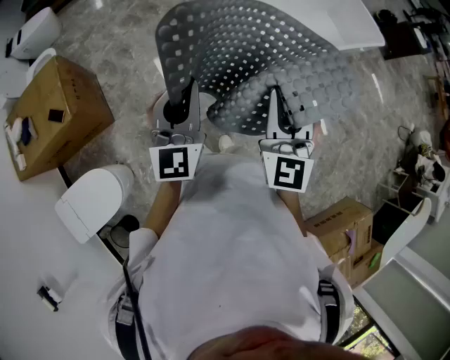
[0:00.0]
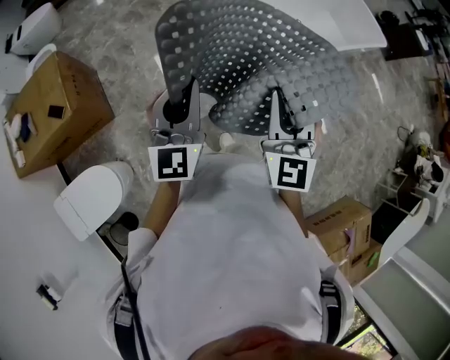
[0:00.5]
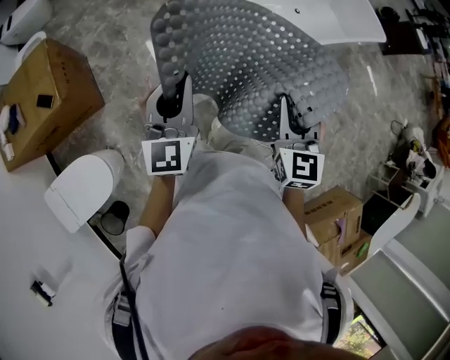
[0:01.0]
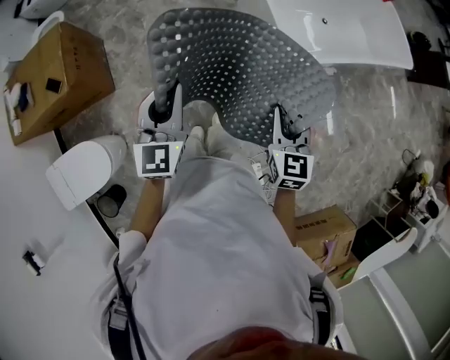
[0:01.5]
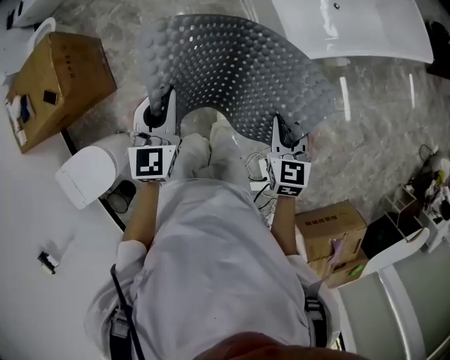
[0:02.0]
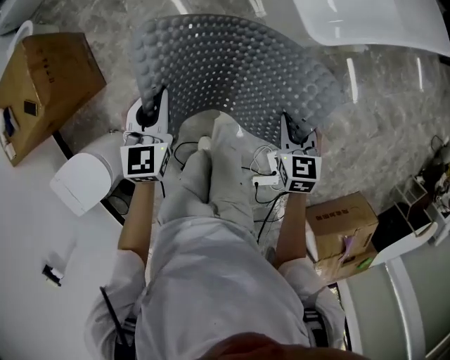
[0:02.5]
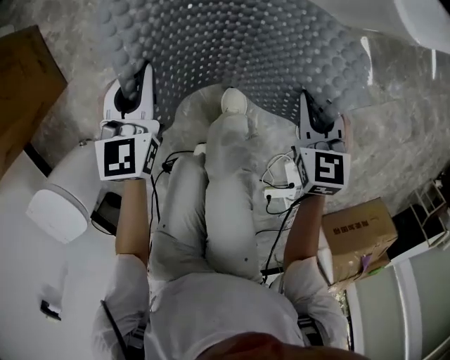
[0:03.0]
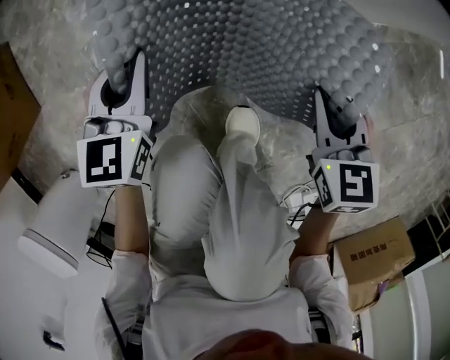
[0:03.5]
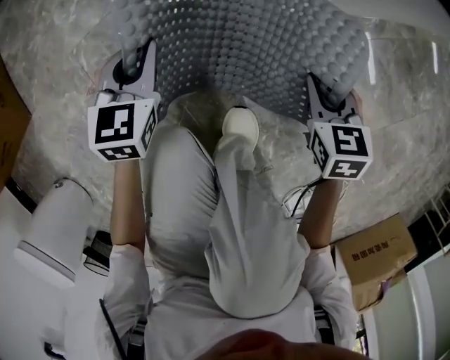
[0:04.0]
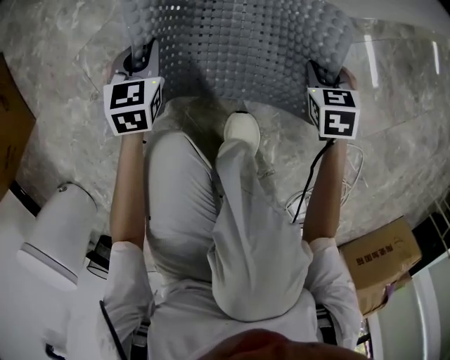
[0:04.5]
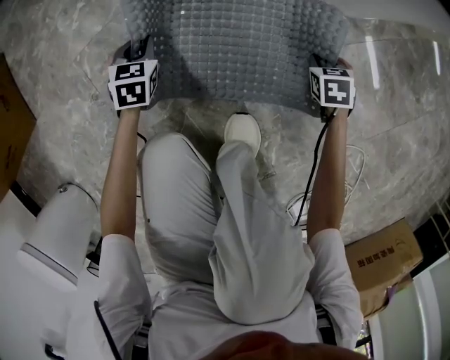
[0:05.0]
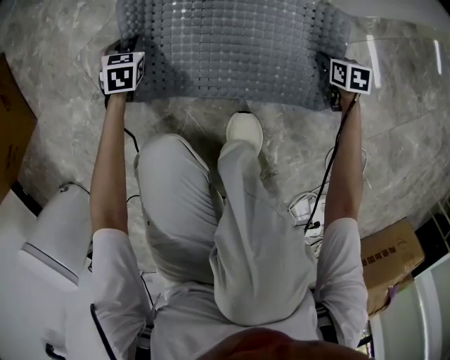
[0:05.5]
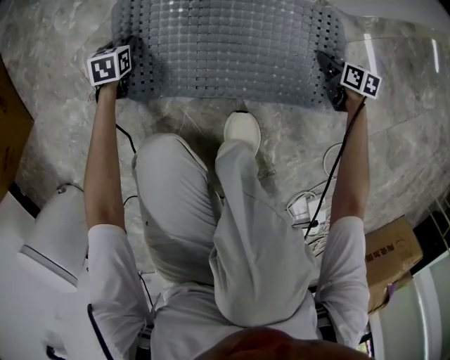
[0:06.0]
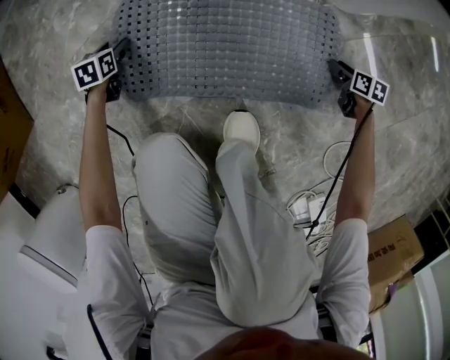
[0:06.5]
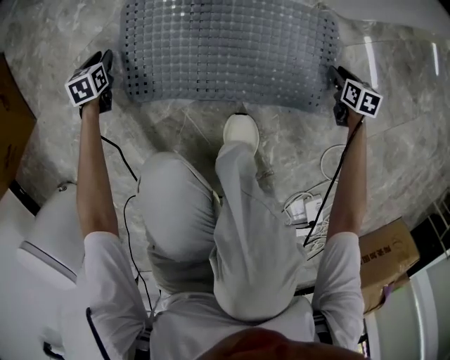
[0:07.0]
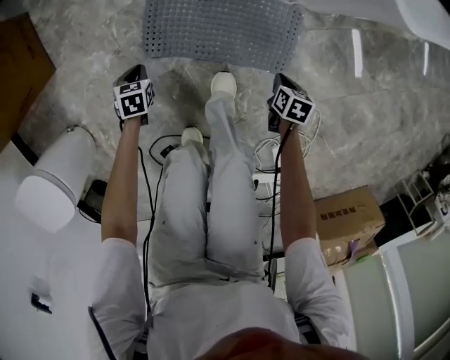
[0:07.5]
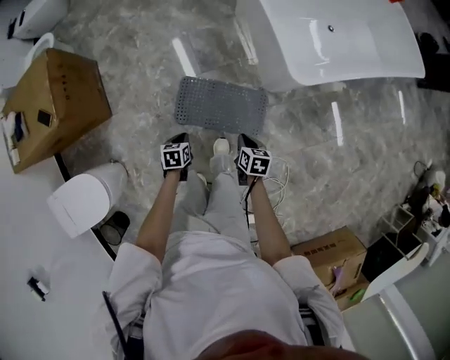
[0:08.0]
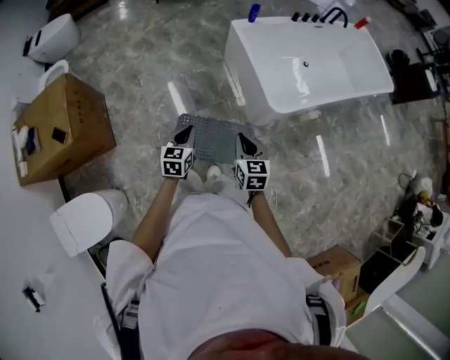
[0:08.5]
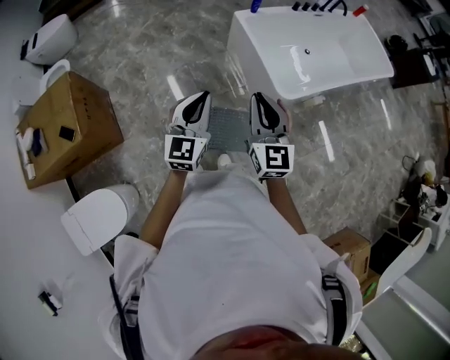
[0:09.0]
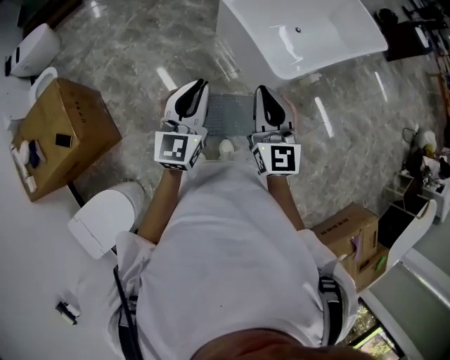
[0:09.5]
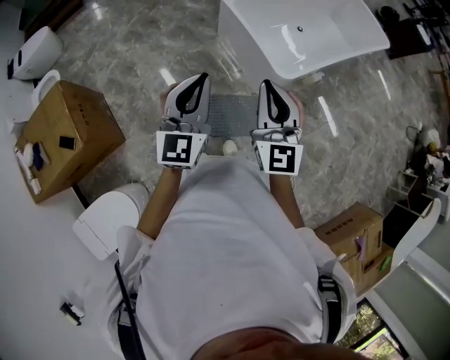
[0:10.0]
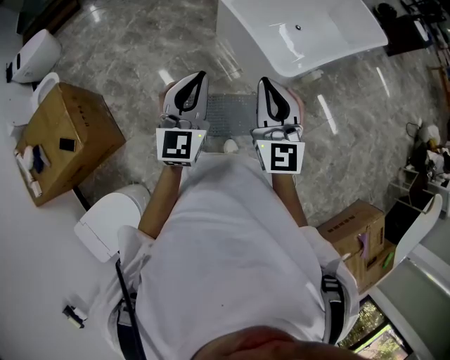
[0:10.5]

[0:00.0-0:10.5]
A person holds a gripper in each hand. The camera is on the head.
0:00.0 to 0:02.0: The right gripper shifts about 25 cm downward and to the right, and tilts its fingers some 30 degrees downward. Meanwhile the left gripper shifts roughly 15 cm downward, and rotates roughly 30 degrees.
0:02.0 to 0:04.0: Both grippers move downward, some 10 cm.
0:04.0 to 0:06.5: The left gripper heads downward and to the left, covering some 25 cm, rotates roughly 30 degrees, and opens up. Meanwhile the right gripper shifts some 30 cm downward and to the right, swivels about 30 degrees, and opens up.
0:06.5 to 0:08.5: The two grippers go roughly 90 cm upward. The right gripper turns by roughly 40 degrees, and closes up; the left gripper turns by some 30 degrees, and closes.
0:08.5 to 0:10.5: Both grippers move upward, some 25 cm. The left gripper points its fingers some 30 degrees further upward, while the right gripper tips its fingers upward by some 30 degrees.

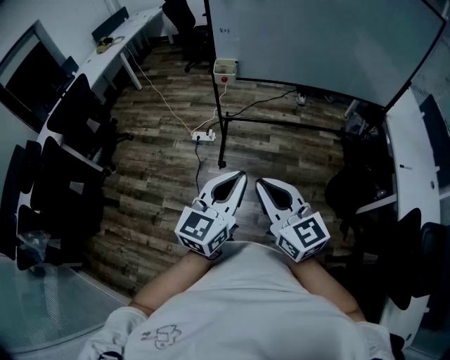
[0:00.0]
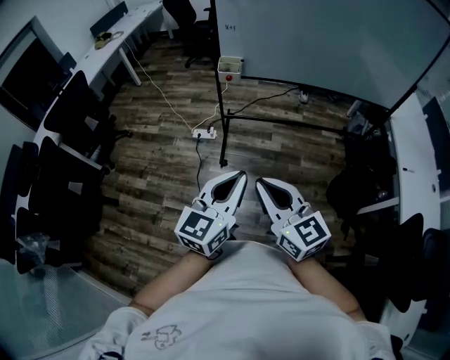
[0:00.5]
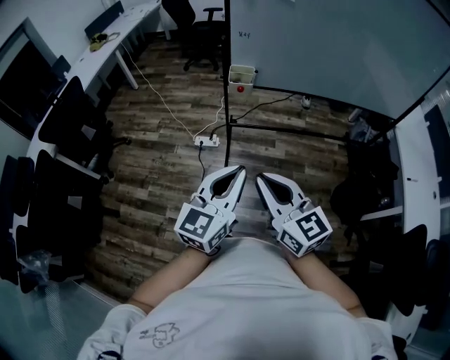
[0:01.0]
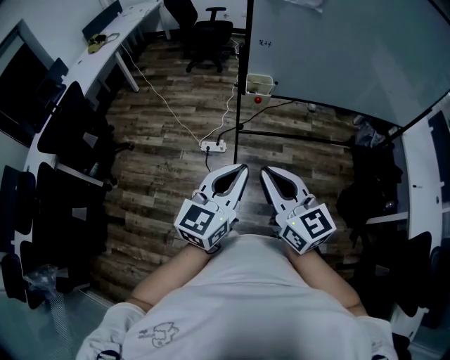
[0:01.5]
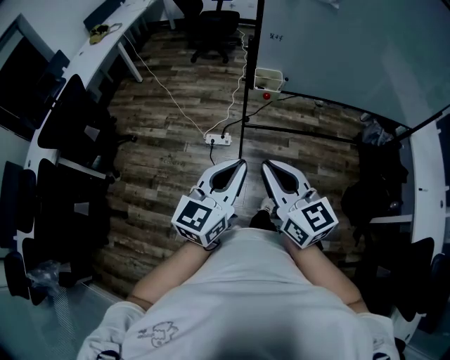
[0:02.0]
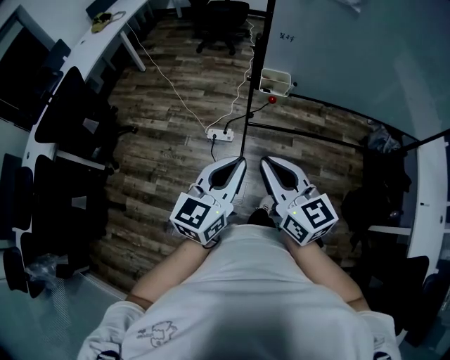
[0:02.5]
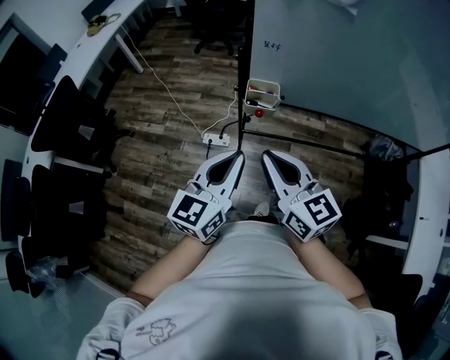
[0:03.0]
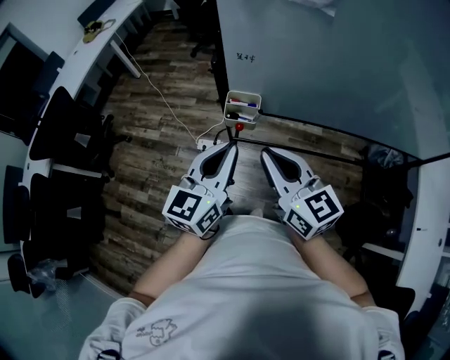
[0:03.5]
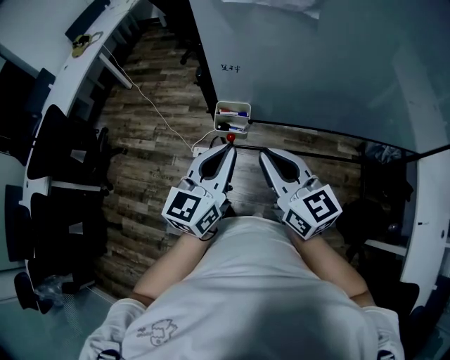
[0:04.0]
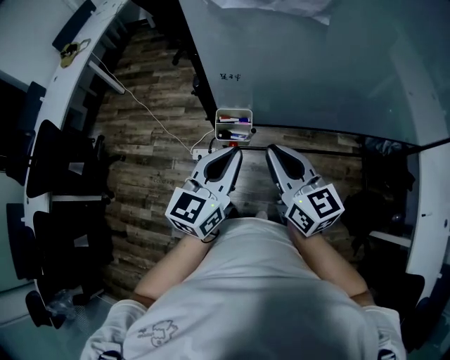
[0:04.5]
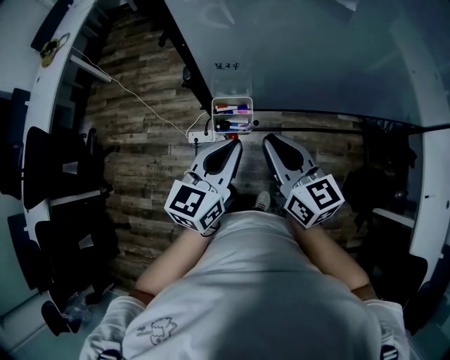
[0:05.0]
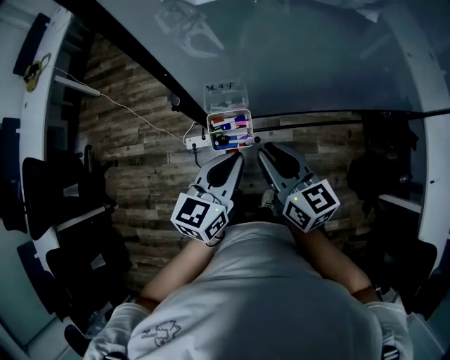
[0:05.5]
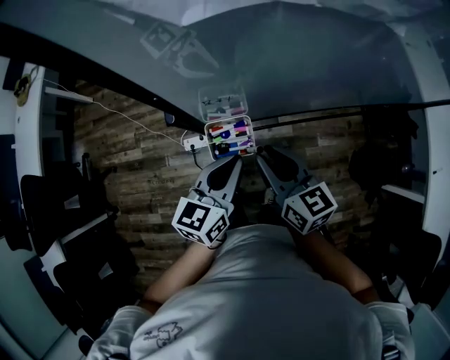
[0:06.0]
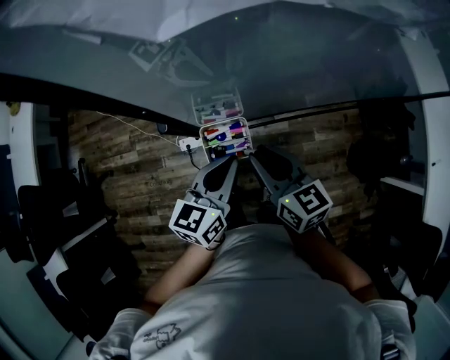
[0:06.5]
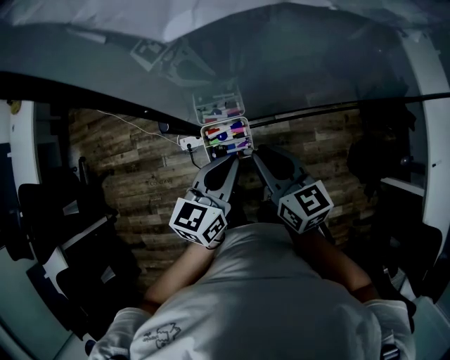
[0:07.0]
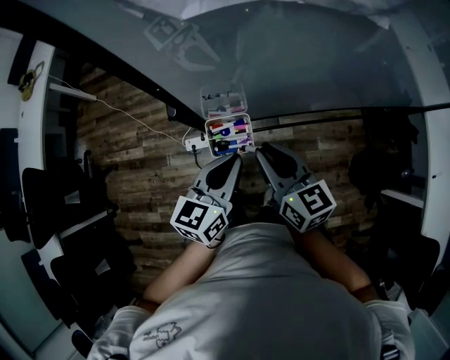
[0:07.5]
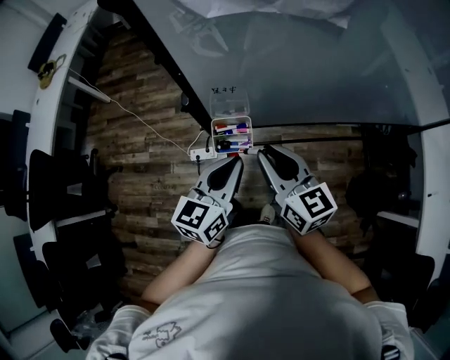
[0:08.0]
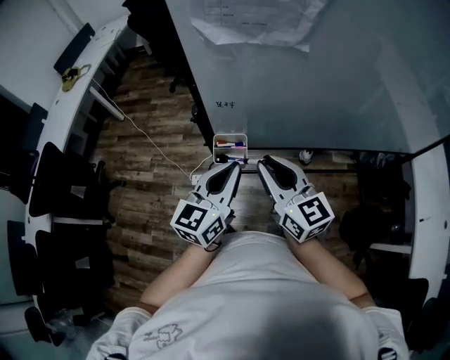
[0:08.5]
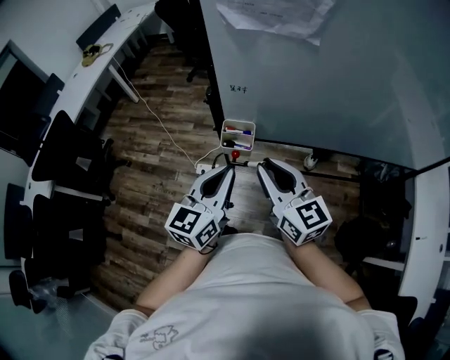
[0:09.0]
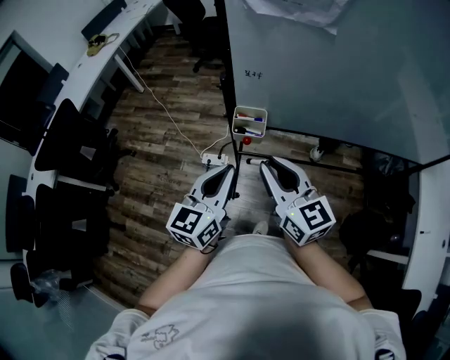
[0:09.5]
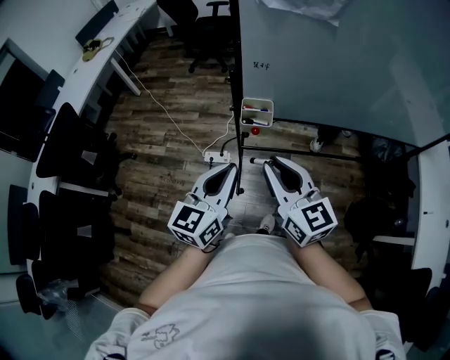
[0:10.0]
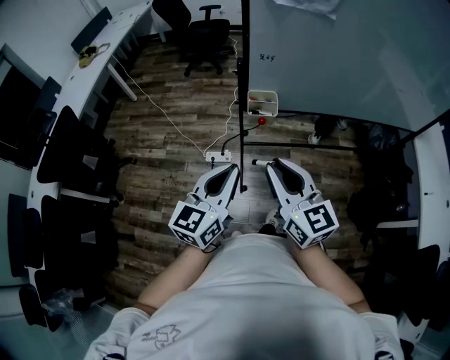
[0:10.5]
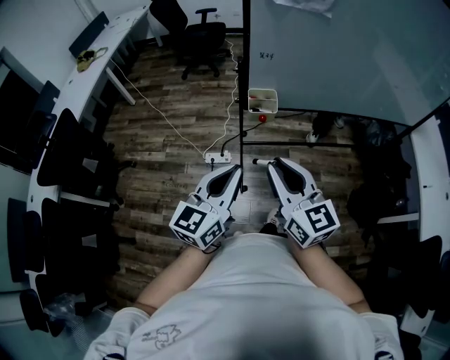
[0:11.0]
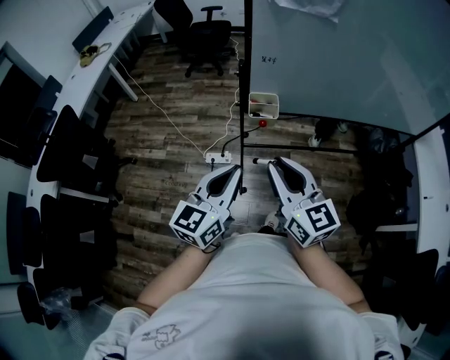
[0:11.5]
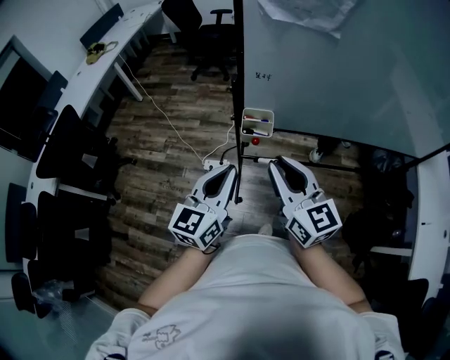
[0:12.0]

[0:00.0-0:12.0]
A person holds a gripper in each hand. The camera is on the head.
0:00.0 to 0:02.0: The grippers both shift forward and to the left by roughly 30 cm.
0:02.0 to 0:04.0: The two grippers go some 30 cm forward and to the right.
0:04.0 to 0:06.0: The two grippers go roughly 20 cm downward and forward. The left gripper rotates approximately 20 degrees, while the right gripper swivels some 30 degrees.
0:06.0 to 0:08.0: The two grippers go approximately 5 cm upward.
0:08.0 to 0:10.0: The left gripper is displaced backward and to the left by some 20 cm, while the right gripper shifts roughly 20 cm backward.
0:10.0 to 0:12.0: The left gripper goes backward and returns, some 10 cm each way; the right gripper travels backward and back again, approximately 10 cm each way.

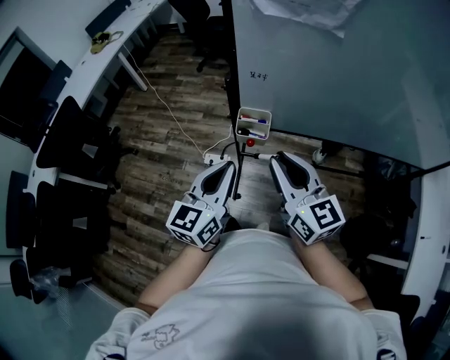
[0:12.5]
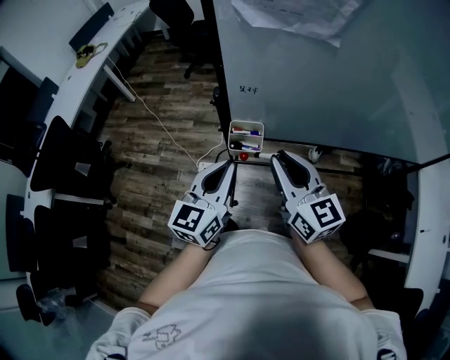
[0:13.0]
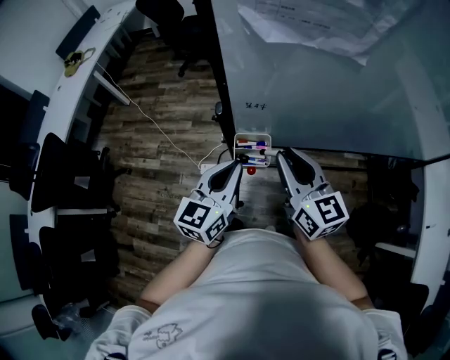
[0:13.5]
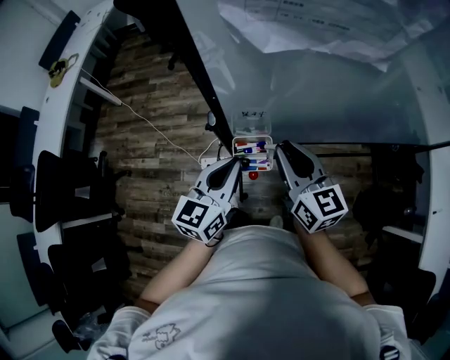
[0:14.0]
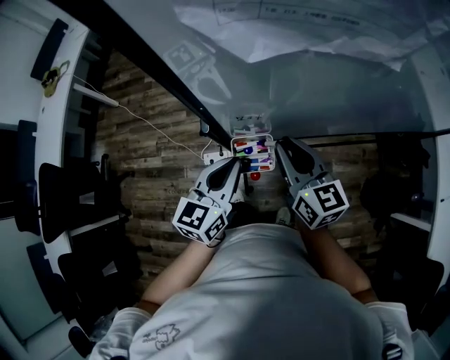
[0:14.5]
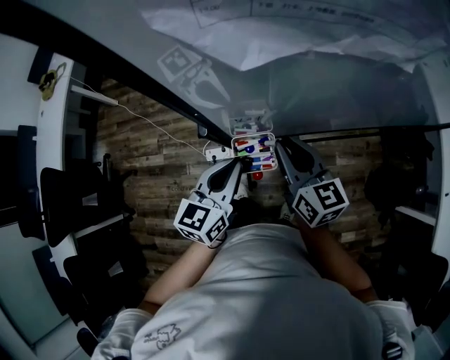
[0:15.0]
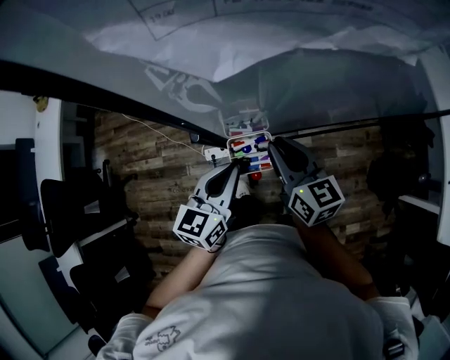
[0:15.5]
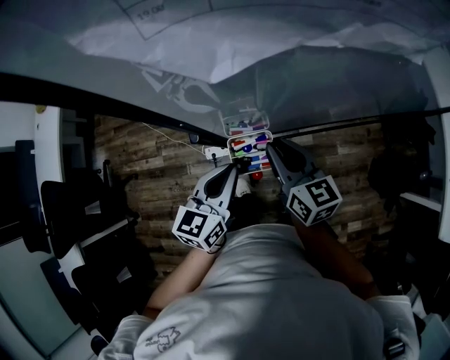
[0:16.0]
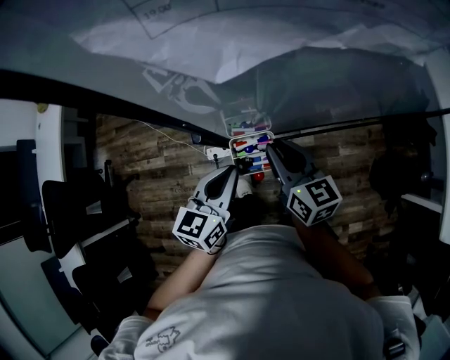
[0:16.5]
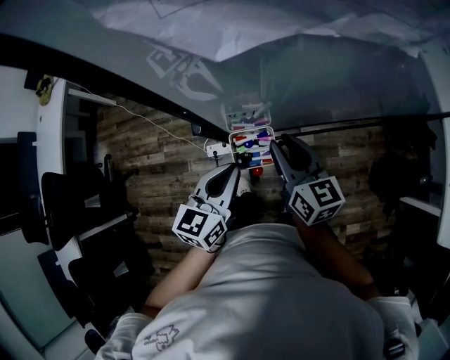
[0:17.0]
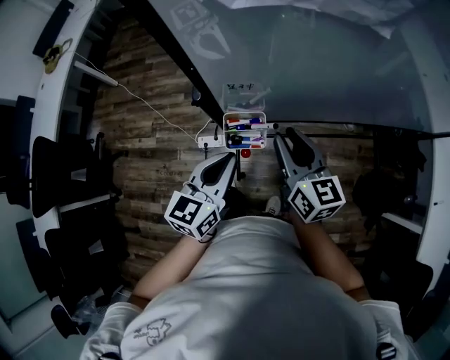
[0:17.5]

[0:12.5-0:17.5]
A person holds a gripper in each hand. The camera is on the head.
0:12.5 to 0:15.0: The grippers both shift forward and downward by approximately 25 cm. The left gripper rotates approximately 20 degrees; the right gripper turns by about 20 degrees.
0:15.0 to 0:17.5: The right gripper shifts by some 5 cm. The left gripper is displaced backward by roughly 5 cm.
